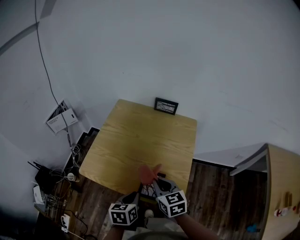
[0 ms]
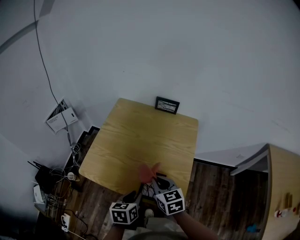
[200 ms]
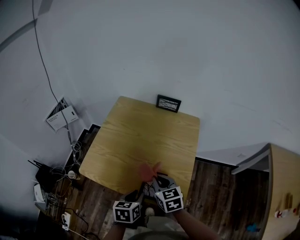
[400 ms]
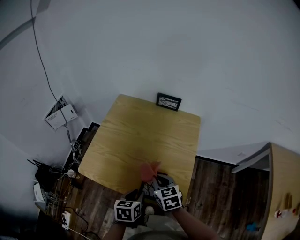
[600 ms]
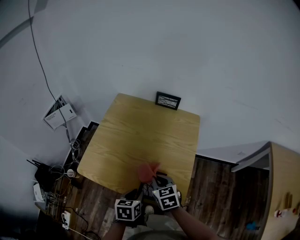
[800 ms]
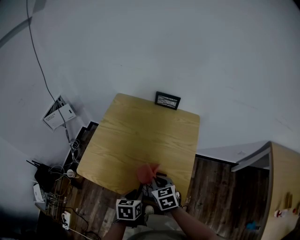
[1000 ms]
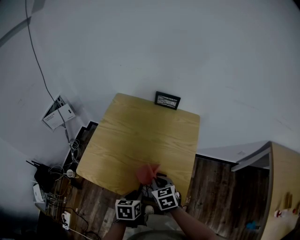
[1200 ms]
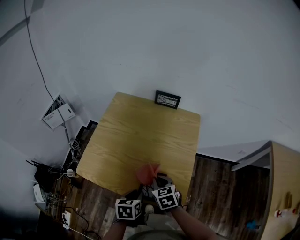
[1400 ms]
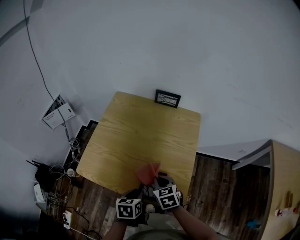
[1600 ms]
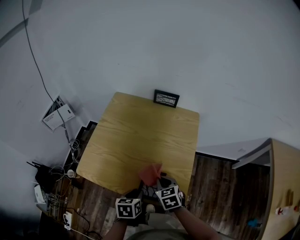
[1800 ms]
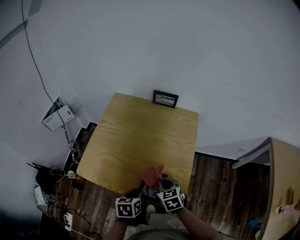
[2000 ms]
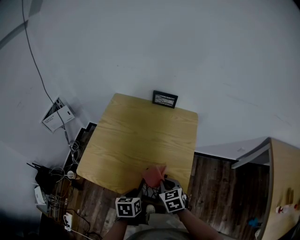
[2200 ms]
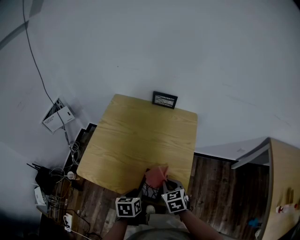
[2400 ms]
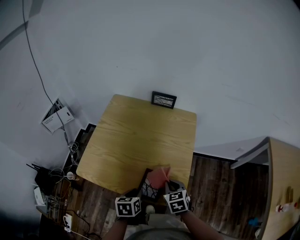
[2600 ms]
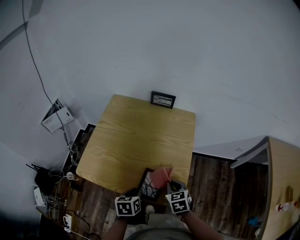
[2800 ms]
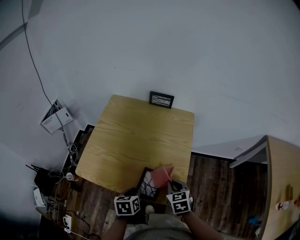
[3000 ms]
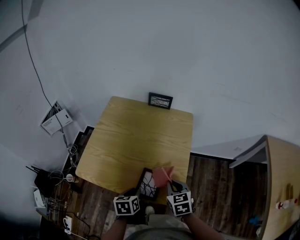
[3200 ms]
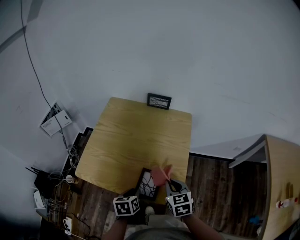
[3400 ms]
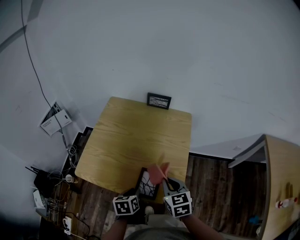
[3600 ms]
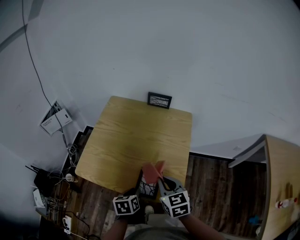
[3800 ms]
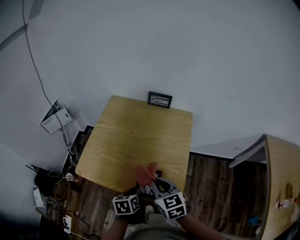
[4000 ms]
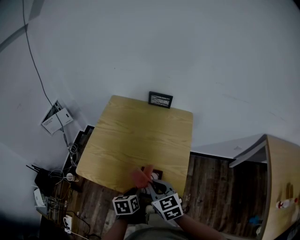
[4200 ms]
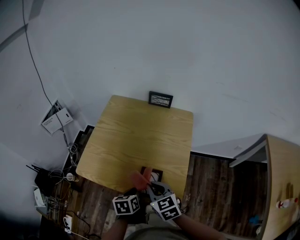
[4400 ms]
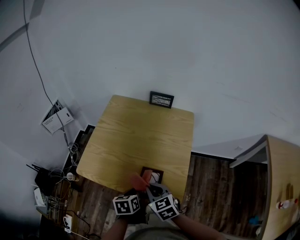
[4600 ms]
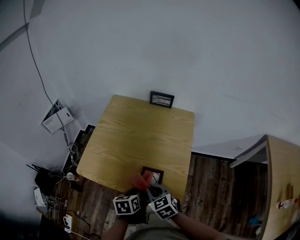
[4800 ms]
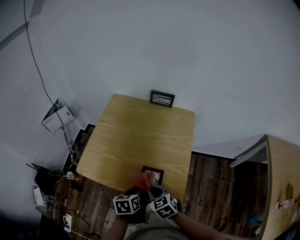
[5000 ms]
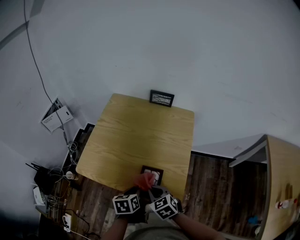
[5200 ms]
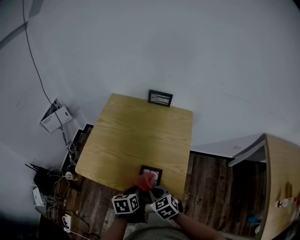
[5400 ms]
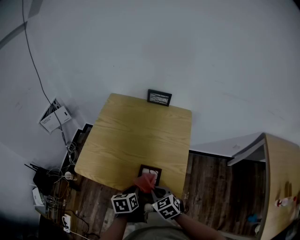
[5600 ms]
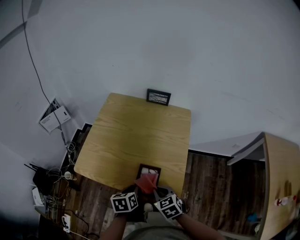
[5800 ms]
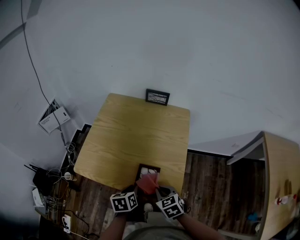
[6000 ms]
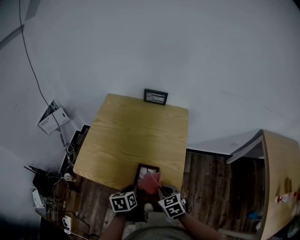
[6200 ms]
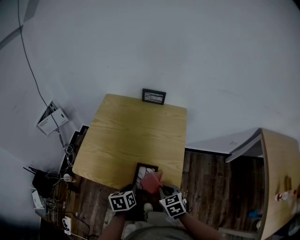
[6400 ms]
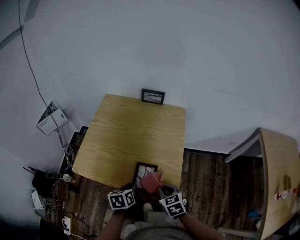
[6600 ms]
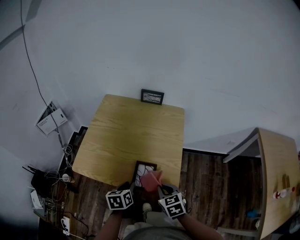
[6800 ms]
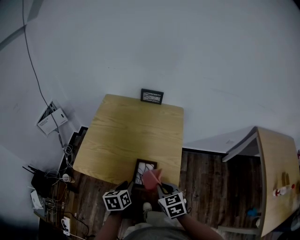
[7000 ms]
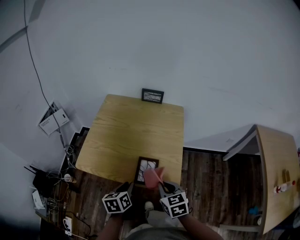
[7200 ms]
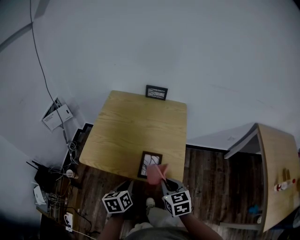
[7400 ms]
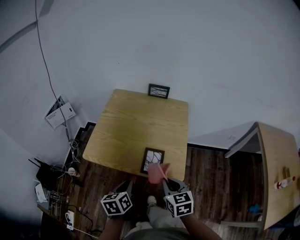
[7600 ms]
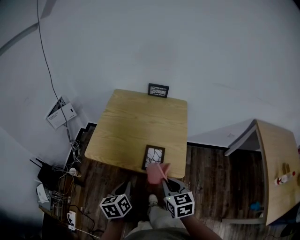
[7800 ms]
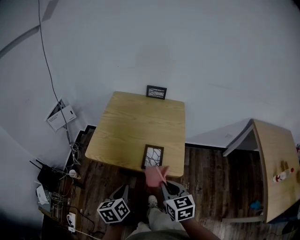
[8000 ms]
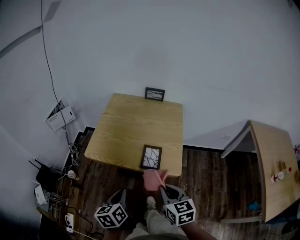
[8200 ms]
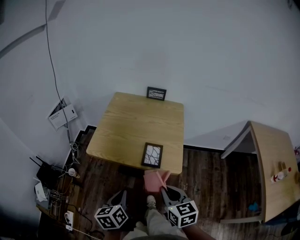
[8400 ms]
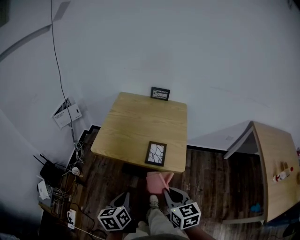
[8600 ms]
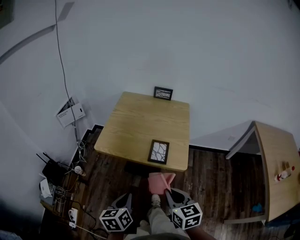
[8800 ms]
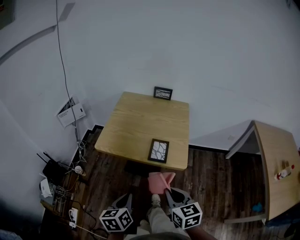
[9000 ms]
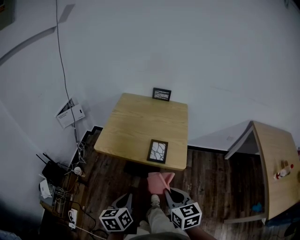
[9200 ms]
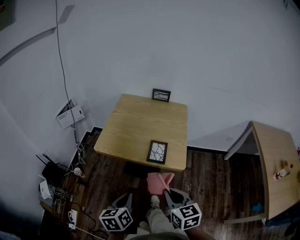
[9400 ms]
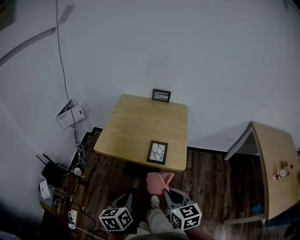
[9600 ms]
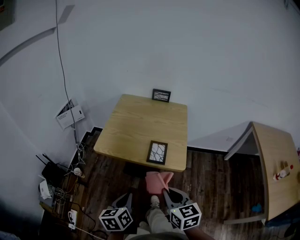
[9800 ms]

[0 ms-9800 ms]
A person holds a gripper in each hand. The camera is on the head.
0 ms to 1400 ms: The left gripper is displaced downward by approximately 5 cm, and opens its fingers; the right gripper goes about 10 cm downward.
1400 ms to 2800 ms: The right gripper moves to the right, approximately 10 cm.
2800 ms to 4200 ms: The right gripper is displaced to the left and upward by approximately 15 cm, and swivels roughly 20 degrees.
4200 ms to 5600 ms: The right gripper goes approximately 10 cm downward.
5600 ms to 7000 ms: The right gripper shifts by about 5 cm.
7000 ms to 8400 ms: The right gripper is displaced backward and upward by about 20 cm. Meanwhile the left gripper heads backward, upward and to the left, covering some 20 cm, and closes its fingers.
8400 ms to 9800 ms: The right gripper ends up approximately 5 cm from where it was, while the left gripper moves roughly 5 cm.

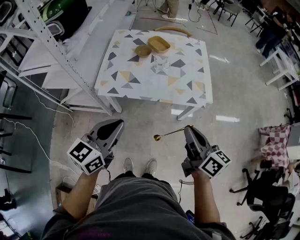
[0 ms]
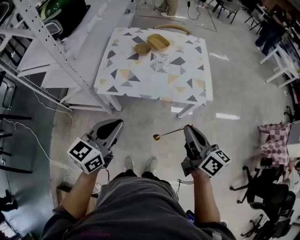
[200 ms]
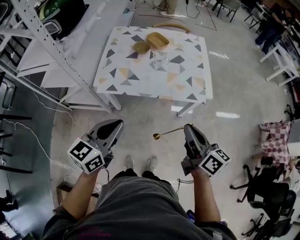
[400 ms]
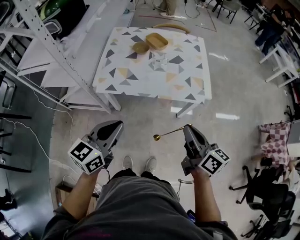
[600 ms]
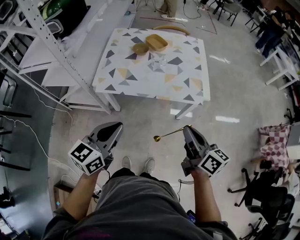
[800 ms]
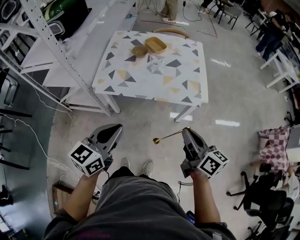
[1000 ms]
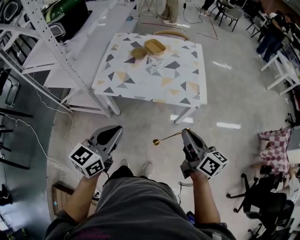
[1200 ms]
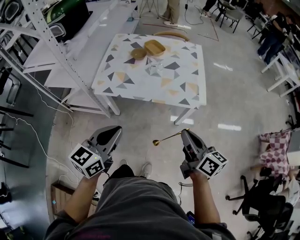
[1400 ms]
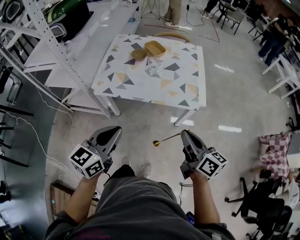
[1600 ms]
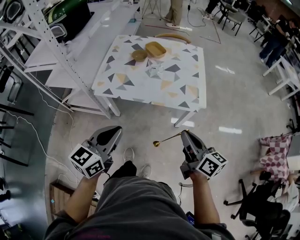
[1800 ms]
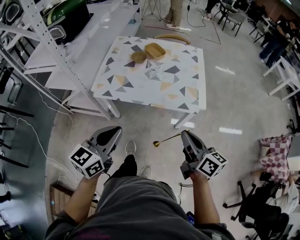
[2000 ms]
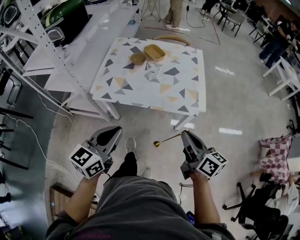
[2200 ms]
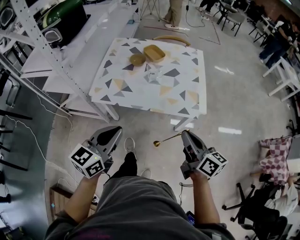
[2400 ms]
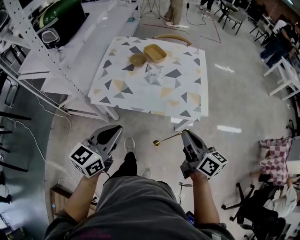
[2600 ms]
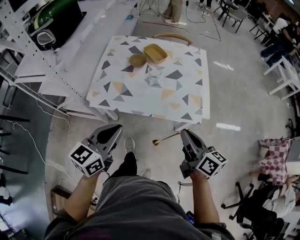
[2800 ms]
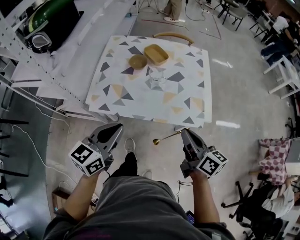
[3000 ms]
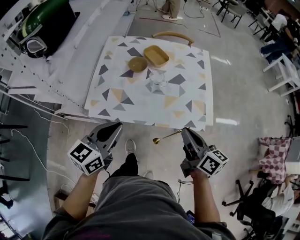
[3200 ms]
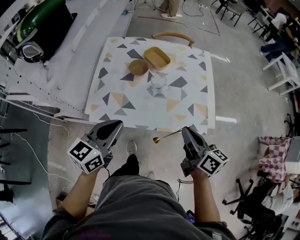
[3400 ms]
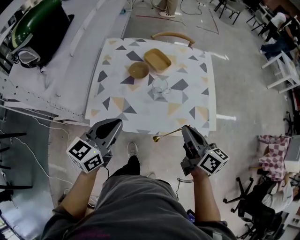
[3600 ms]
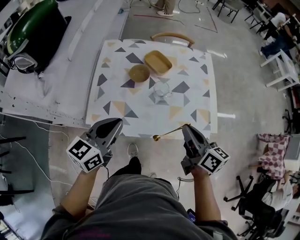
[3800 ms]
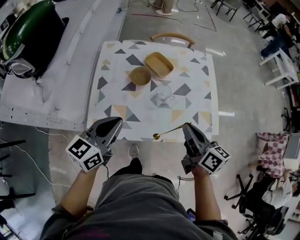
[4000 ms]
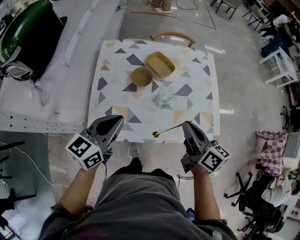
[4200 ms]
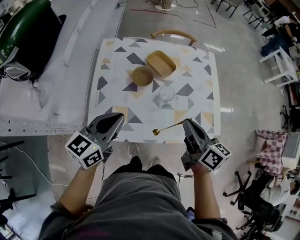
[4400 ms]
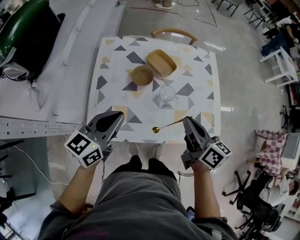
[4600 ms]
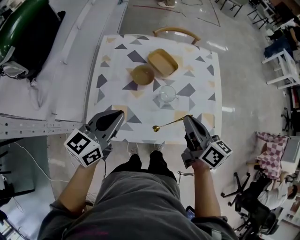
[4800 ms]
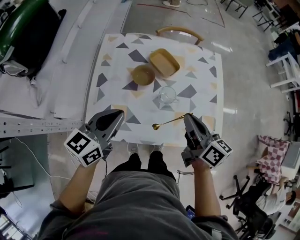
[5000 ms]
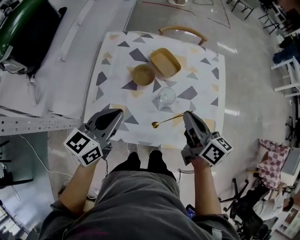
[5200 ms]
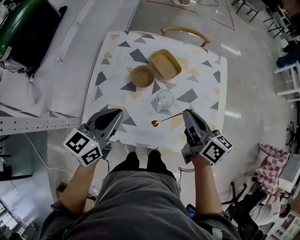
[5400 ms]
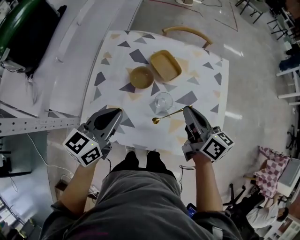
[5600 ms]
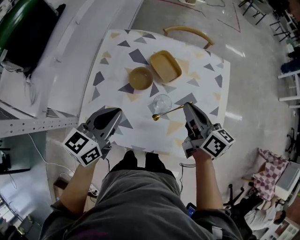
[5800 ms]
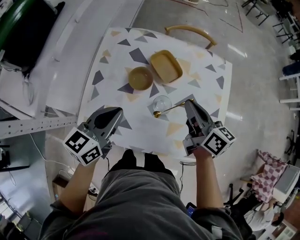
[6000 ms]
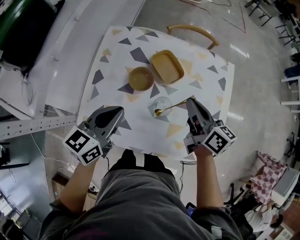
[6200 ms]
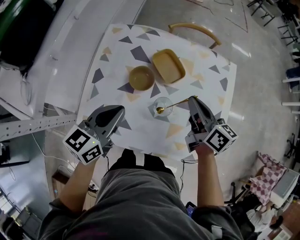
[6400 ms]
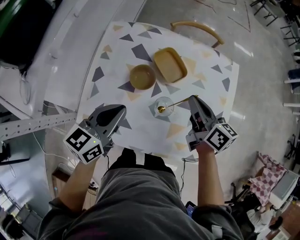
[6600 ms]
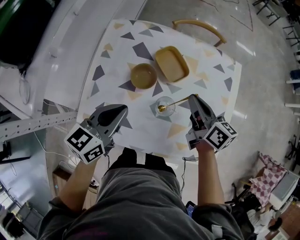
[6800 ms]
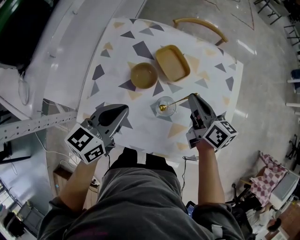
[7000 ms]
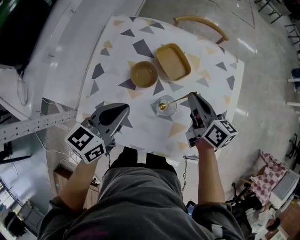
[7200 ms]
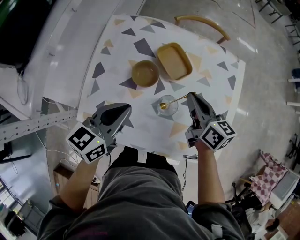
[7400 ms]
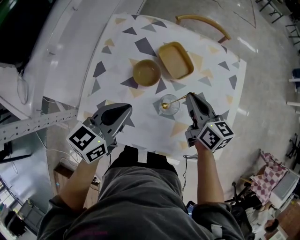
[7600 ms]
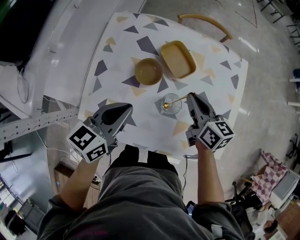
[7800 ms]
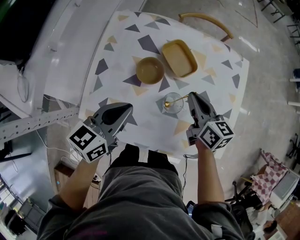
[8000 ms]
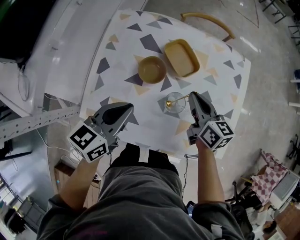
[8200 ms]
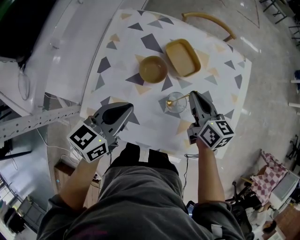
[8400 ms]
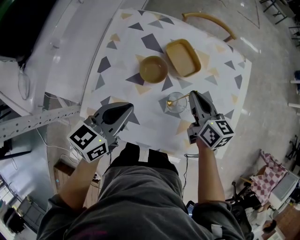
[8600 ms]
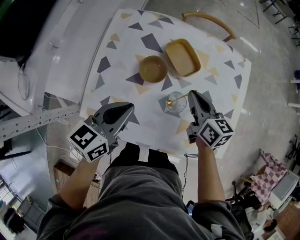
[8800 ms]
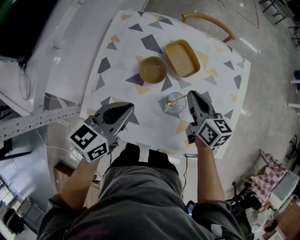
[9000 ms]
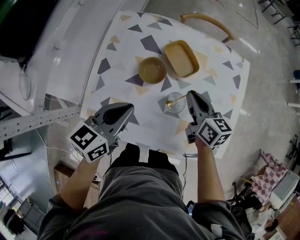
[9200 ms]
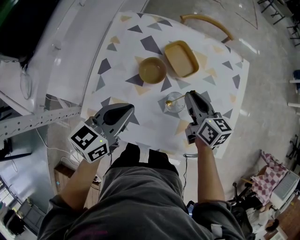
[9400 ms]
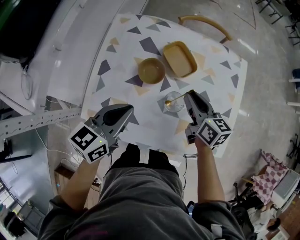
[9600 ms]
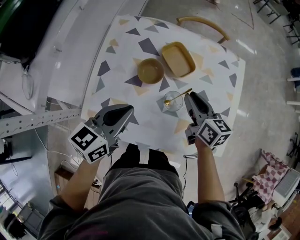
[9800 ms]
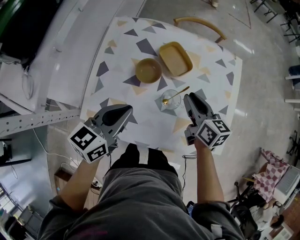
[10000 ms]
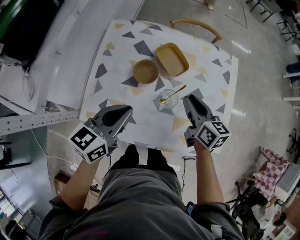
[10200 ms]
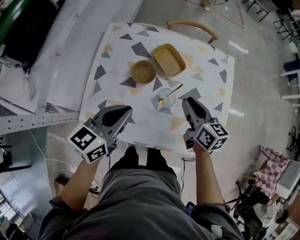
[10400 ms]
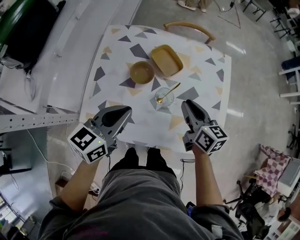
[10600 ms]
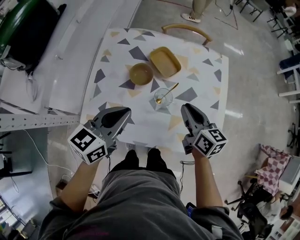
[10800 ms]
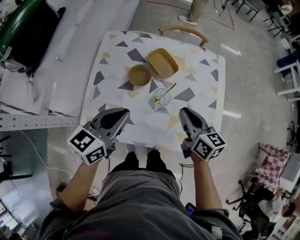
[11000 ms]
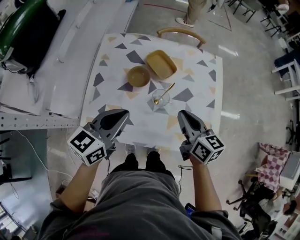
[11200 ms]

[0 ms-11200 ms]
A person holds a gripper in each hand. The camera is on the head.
0 ms to 1600 ms: Both grippers travel together to the right, approximately 5 cm.
1600 ms to 3200 ms: Both grippers move forward, about 20 cm.
3200 ms to 4800 ms: Both grippers travel together forward and to the left, about 20 cm.
4800 ms to 6400 ms: The left gripper heads forward, covering approximately 10 cm. The right gripper is displaced forward by approximately 15 cm.
6400 ms to 8000 ms: The right gripper is displaced downward by approximately 5 cm.
8000 ms to 9600 ms: There are only small adjustments of the grippers.
9600 ms to 11200 ms: The right gripper shifts some 15 cm backward and upward, while the left gripper is displaced upward by about 5 cm.

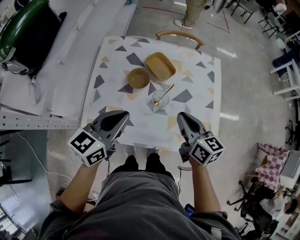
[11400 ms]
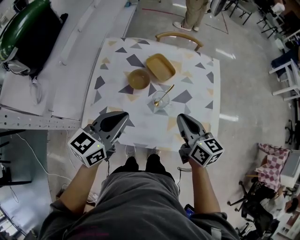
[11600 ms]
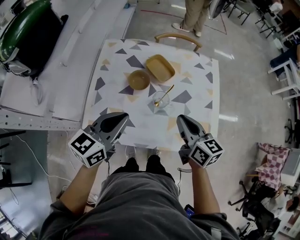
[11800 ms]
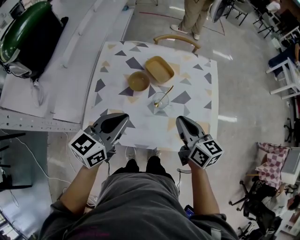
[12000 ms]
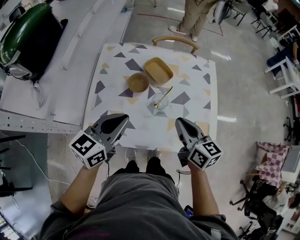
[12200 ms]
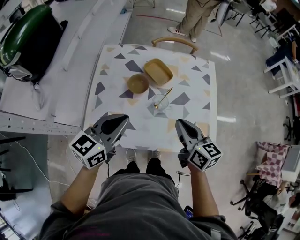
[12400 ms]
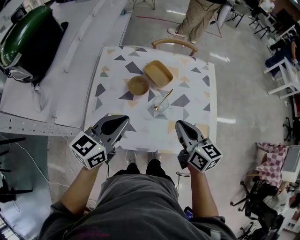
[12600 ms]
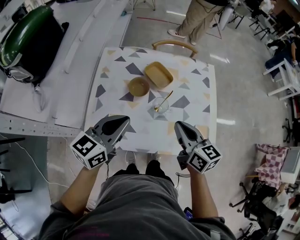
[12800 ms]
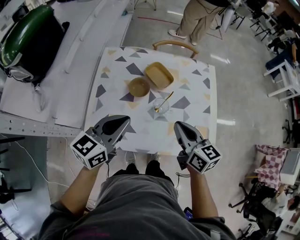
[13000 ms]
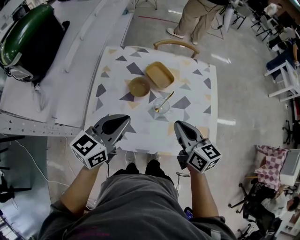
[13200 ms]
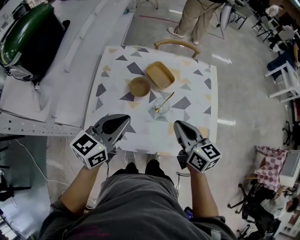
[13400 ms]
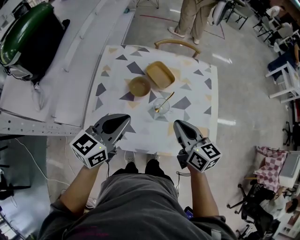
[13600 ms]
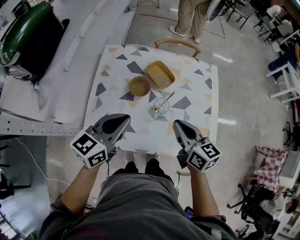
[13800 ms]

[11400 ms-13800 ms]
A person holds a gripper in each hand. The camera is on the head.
11400 ms to 13800 ms: The grippers make only small movements.
